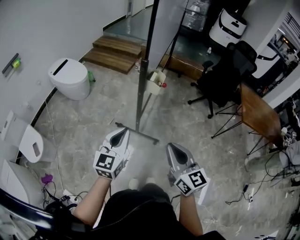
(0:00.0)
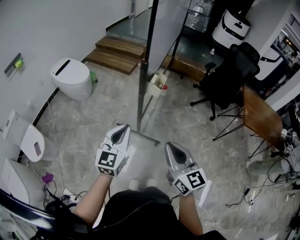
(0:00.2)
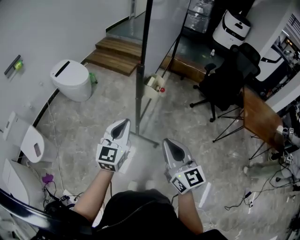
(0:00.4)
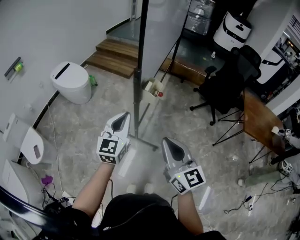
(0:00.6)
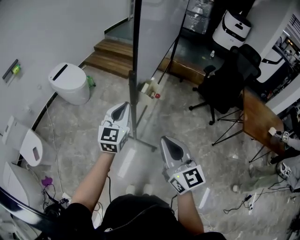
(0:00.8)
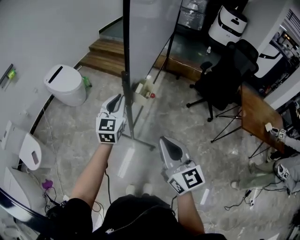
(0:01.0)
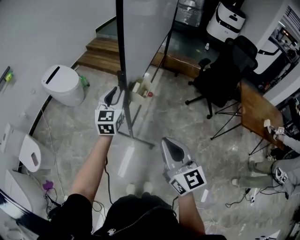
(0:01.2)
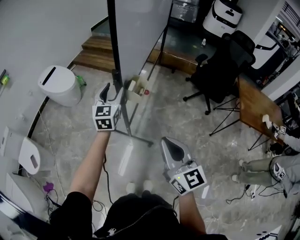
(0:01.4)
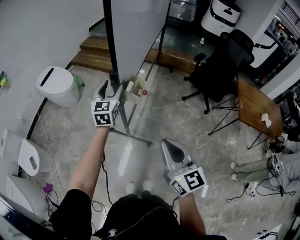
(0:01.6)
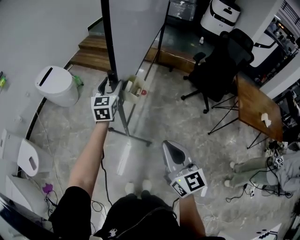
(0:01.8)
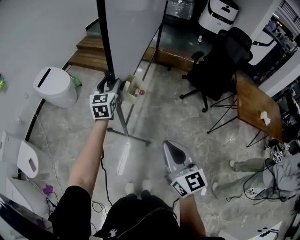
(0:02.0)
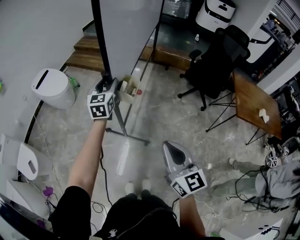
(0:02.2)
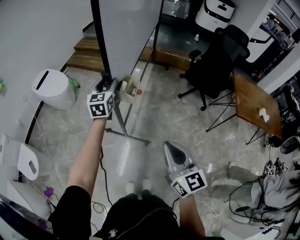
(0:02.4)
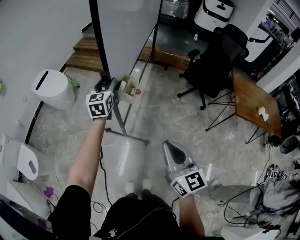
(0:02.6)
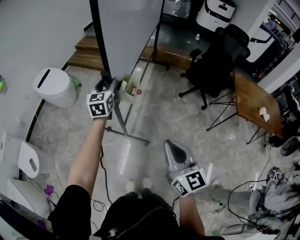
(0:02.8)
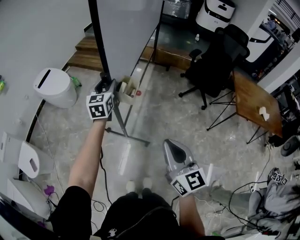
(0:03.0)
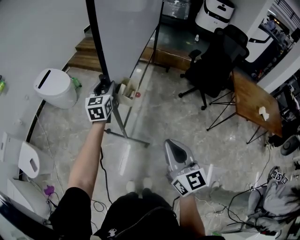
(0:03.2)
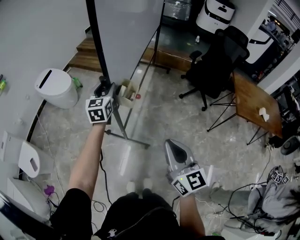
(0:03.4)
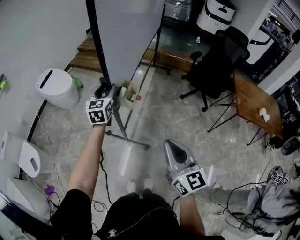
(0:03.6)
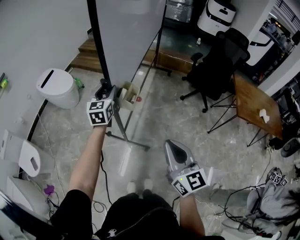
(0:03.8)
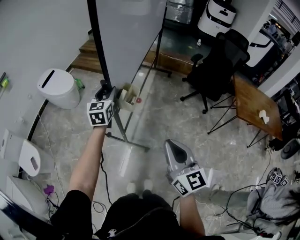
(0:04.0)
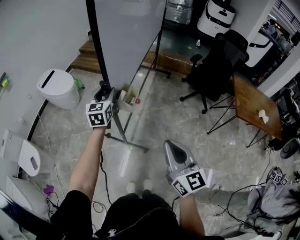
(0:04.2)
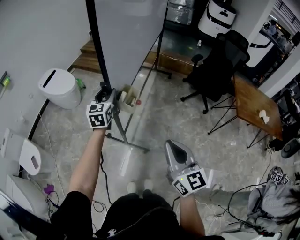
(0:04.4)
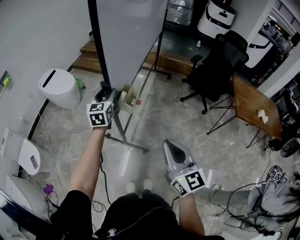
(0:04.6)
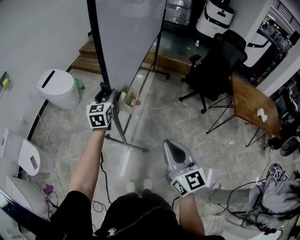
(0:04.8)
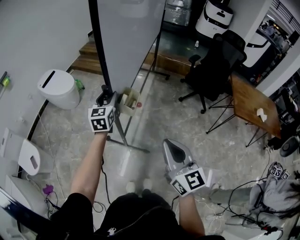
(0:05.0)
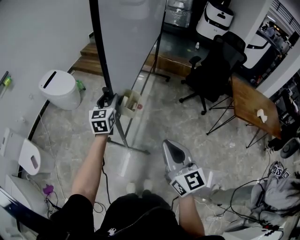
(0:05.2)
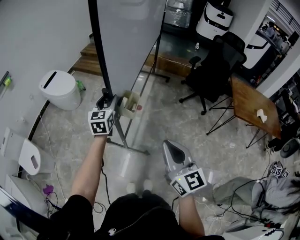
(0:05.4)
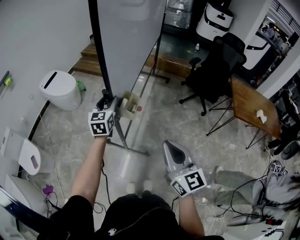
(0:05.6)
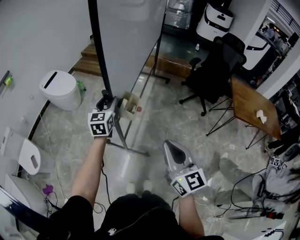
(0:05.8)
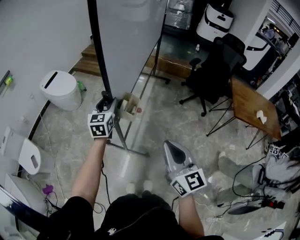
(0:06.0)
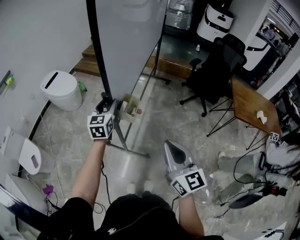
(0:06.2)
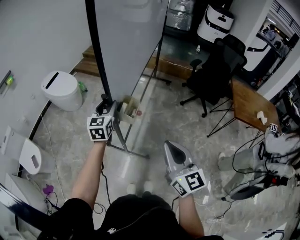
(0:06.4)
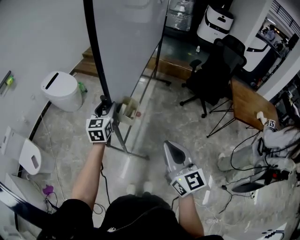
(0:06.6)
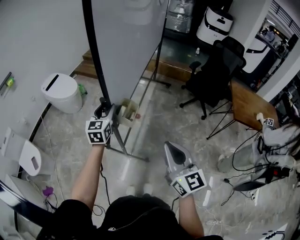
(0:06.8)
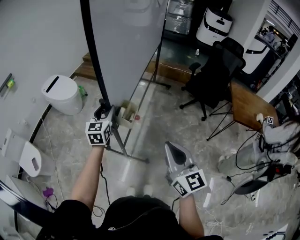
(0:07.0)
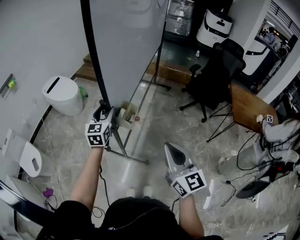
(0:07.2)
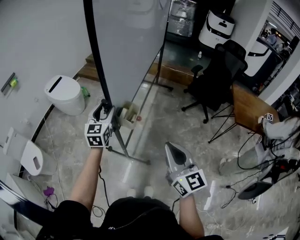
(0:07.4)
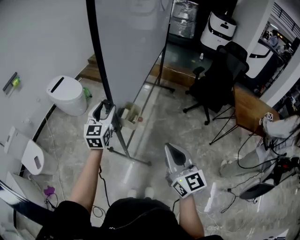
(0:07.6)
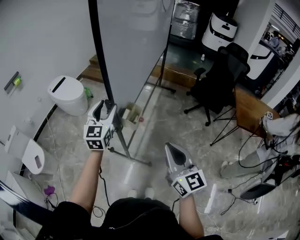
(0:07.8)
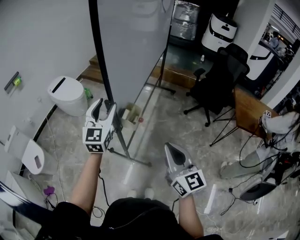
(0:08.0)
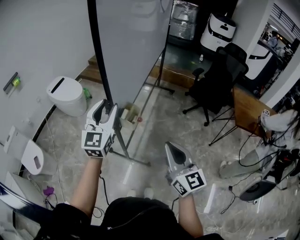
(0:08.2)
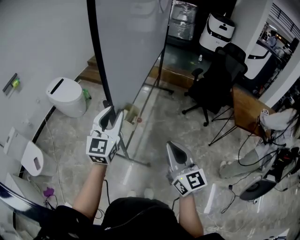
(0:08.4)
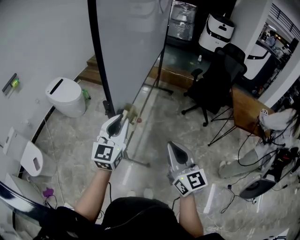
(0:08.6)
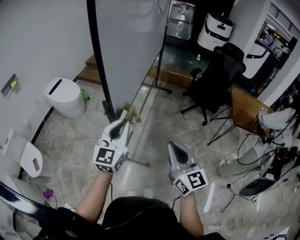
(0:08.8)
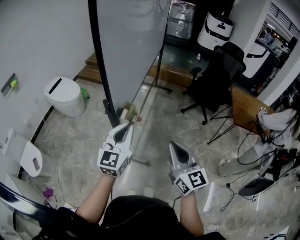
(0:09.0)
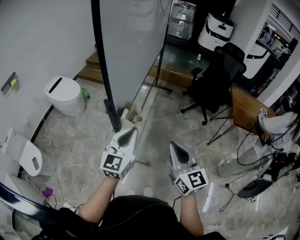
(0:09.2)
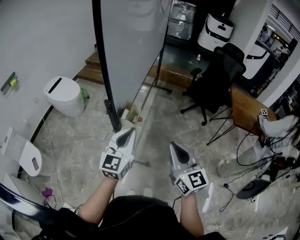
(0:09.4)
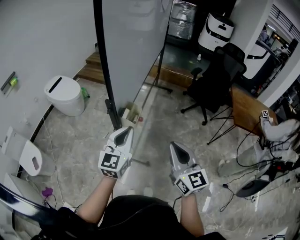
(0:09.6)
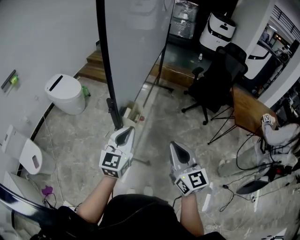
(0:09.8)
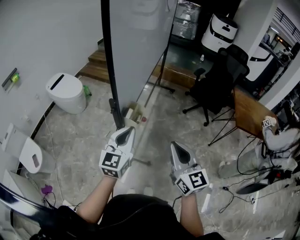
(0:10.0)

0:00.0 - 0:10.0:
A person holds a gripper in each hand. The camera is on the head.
0:00.0 - 0:01.4: The right gripper moves forward and to the right, approximately 15 cm; the left gripper travels forward by about 30 cm, and opens up.
0:01.4 - 0:02.8: The grippers stay close to where they were, moving slightly.
0:02.8 - 0:04.2: The left gripper is displaced backward by approximately 5 cm.
0:04.2 - 0:05.8: The left gripper is displaced backward by some 5 cm.
0:05.8 - 0:07.2: The grippers stay close to where they were, moving slightly.
0:07.2 - 0:08.6: The left gripper is displaced backward, upward and to the right by some 15 cm, and closes.
0:08.6 - 0:10.0: The left gripper changes place by about 5 cm.

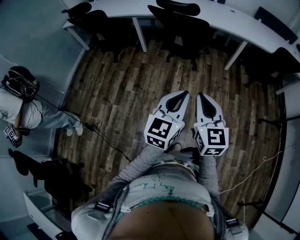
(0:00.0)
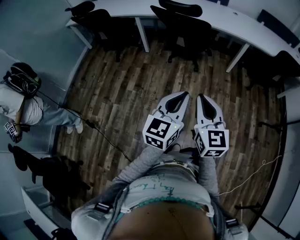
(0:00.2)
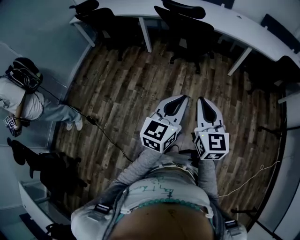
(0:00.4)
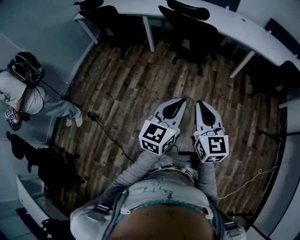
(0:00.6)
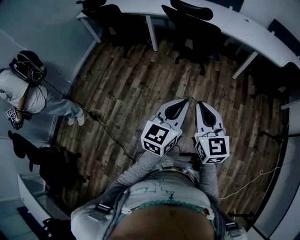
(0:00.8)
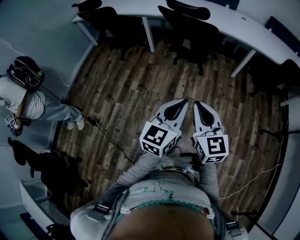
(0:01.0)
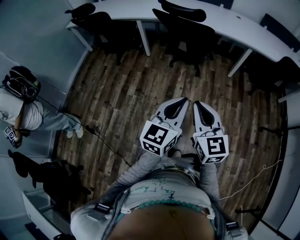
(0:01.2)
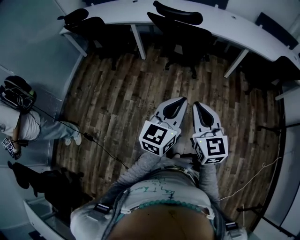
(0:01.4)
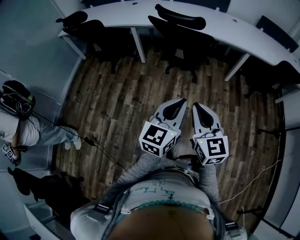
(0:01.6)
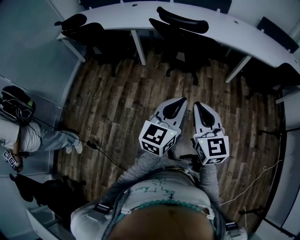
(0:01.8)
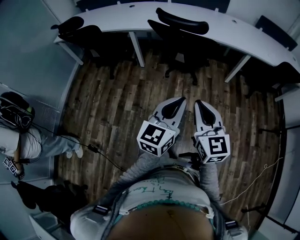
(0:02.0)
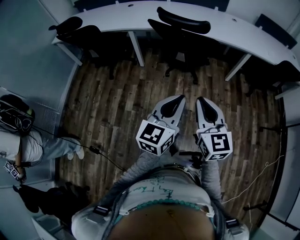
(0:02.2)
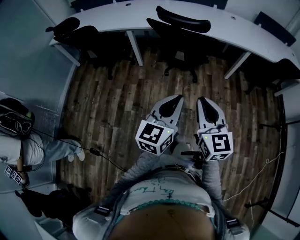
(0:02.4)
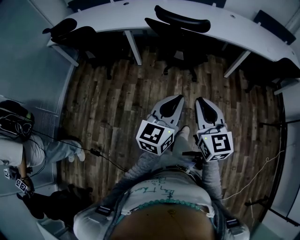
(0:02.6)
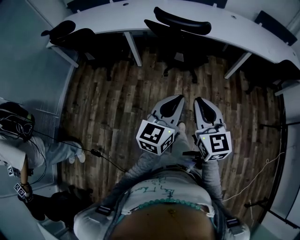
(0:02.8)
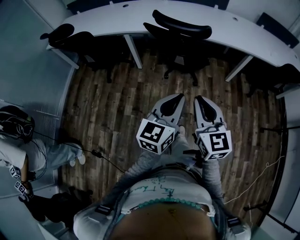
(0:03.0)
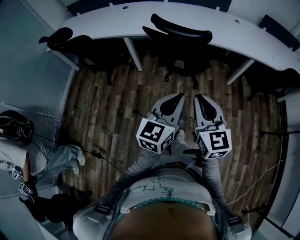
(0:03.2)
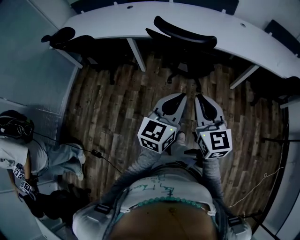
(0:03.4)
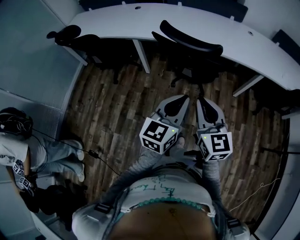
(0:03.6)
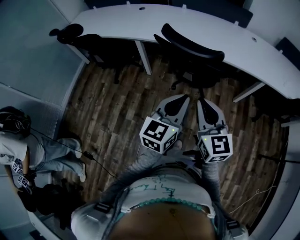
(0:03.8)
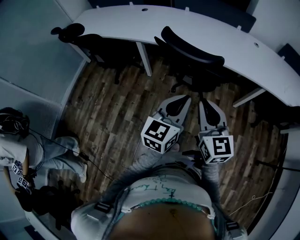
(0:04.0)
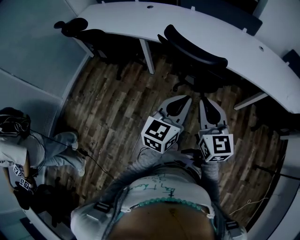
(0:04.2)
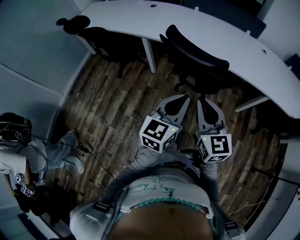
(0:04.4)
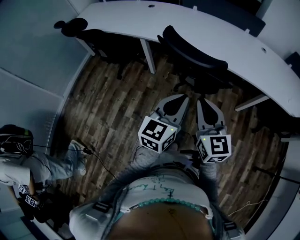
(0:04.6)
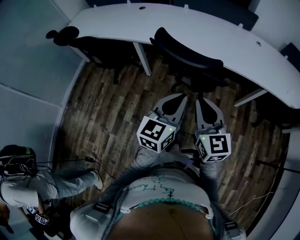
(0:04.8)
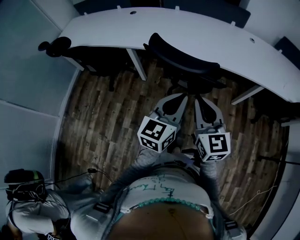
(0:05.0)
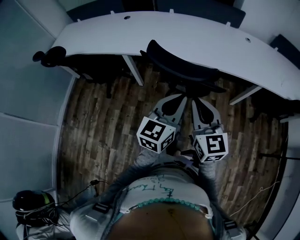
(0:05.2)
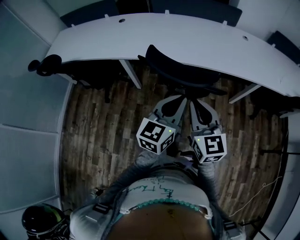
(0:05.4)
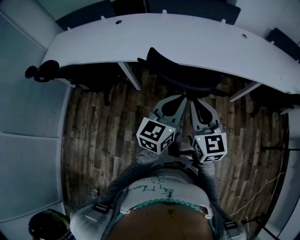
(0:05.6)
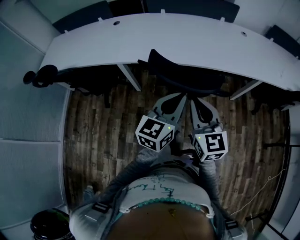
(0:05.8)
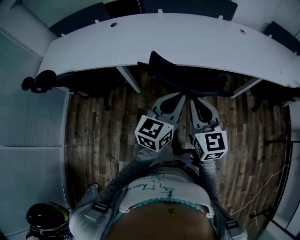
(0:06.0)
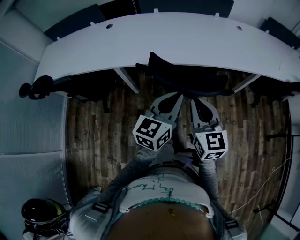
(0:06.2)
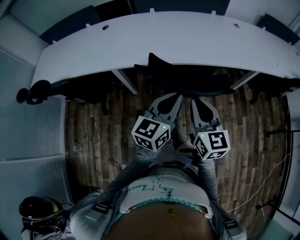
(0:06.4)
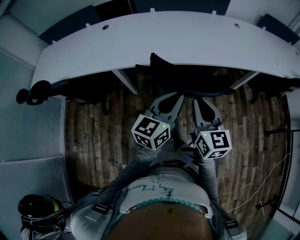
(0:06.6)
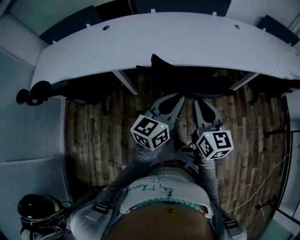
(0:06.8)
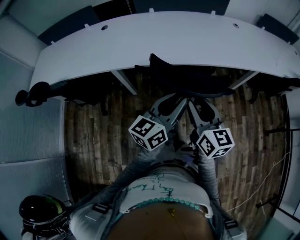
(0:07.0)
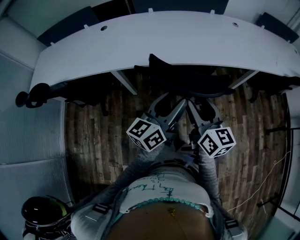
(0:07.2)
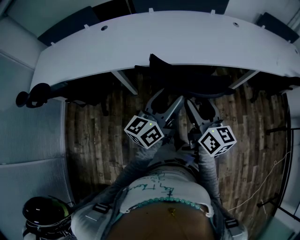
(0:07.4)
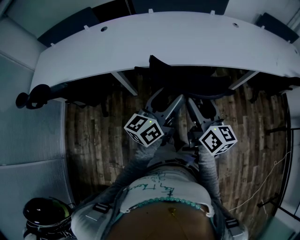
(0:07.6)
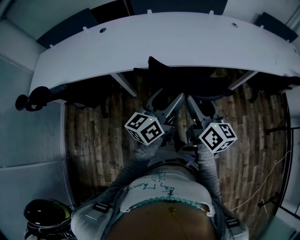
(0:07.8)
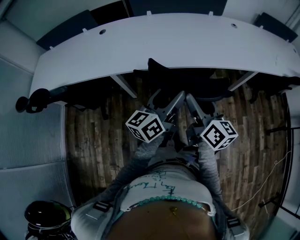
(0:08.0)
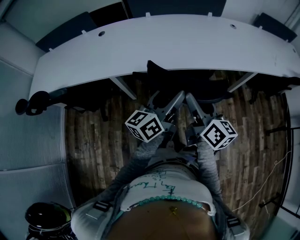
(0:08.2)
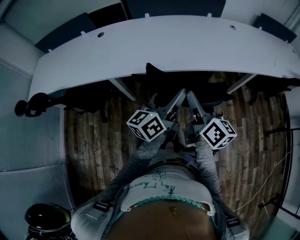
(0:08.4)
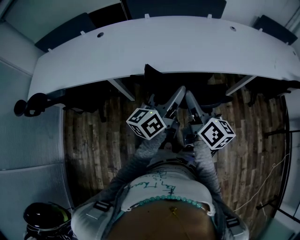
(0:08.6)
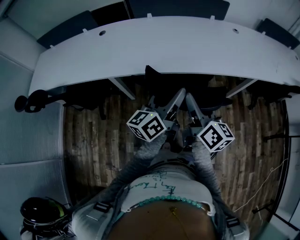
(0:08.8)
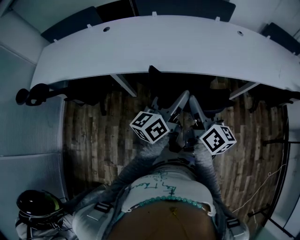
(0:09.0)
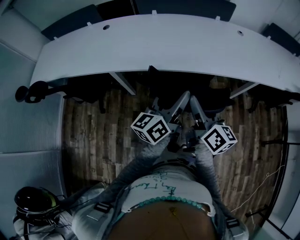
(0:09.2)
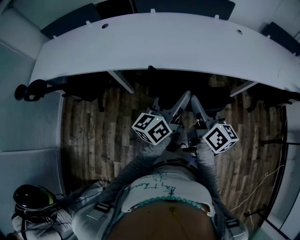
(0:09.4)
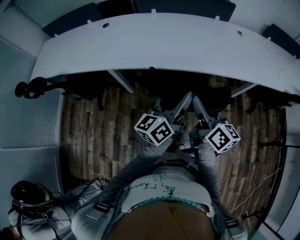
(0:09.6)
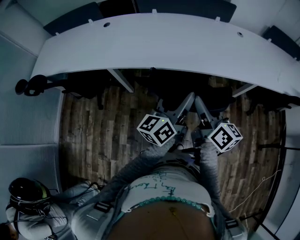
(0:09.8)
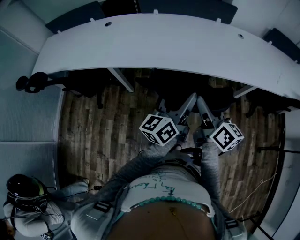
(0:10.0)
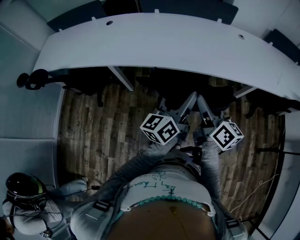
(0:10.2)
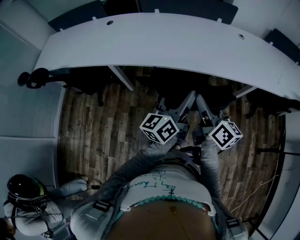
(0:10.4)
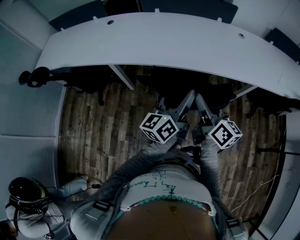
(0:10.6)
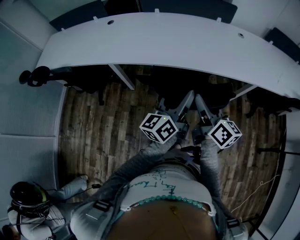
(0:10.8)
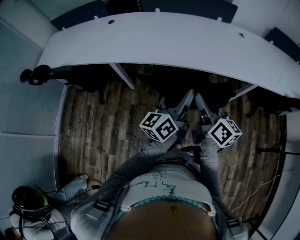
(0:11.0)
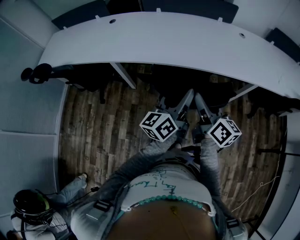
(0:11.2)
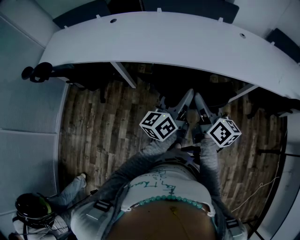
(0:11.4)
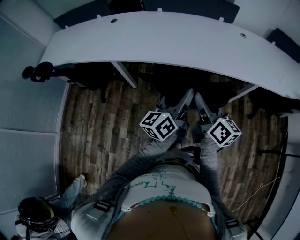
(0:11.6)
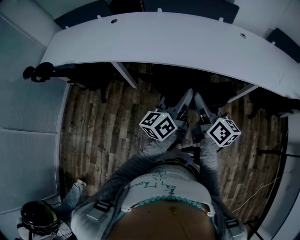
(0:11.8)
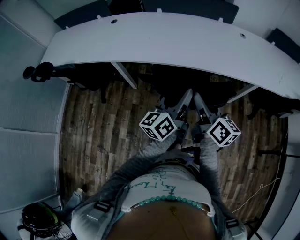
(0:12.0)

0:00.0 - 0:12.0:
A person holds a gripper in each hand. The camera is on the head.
0:00.0 - 0:01.6: The left gripper moves forward, roughly 10 cm, while the right gripper goes roughly 10 cm forward and to the left.
0:01.6 - 0:03.0: The grippers both shift forward and to the left by approximately 15 cm.
0:03.0 - 0:04.4: The two grippers go roughly 20 cm forward.
0:04.4 - 0:06.0: The left gripper moves forward, roughly 15 cm. The right gripper heads forward and to the left, covering roughly 15 cm.
0:06.0 - 0:07.6: The right gripper swivels some 30 degrees, and opens up. The left gripper is displaced to the left by roughly 5 cm, rotates roughly 20 degrees, and opens up.
0:07.6 - 0:09.0: The grippers both shift forward by about 5 cm.
0:09.0 - 0:10.4: The two grippers go approximately 10 cm to the right.
0:10.4 - 0:12.0: There are only small adjustments of the grippers.

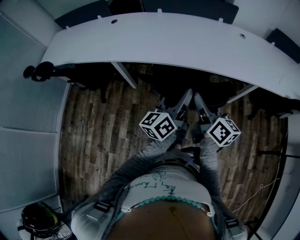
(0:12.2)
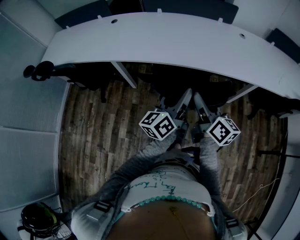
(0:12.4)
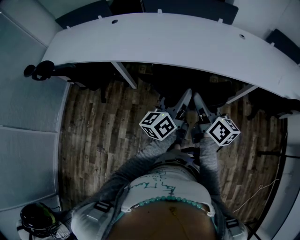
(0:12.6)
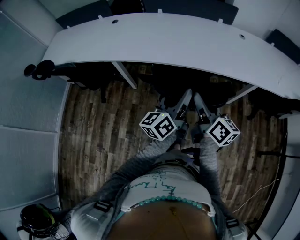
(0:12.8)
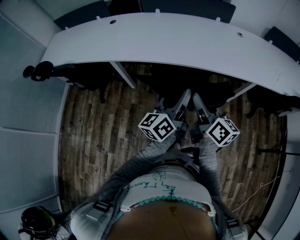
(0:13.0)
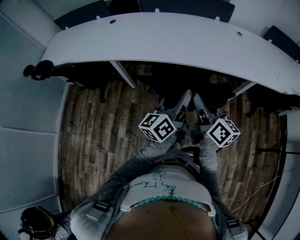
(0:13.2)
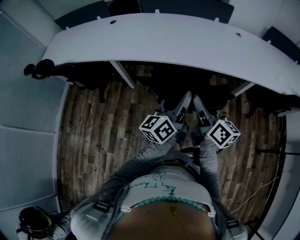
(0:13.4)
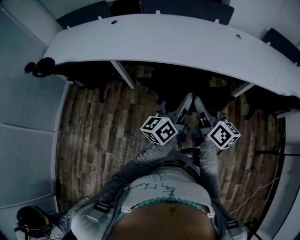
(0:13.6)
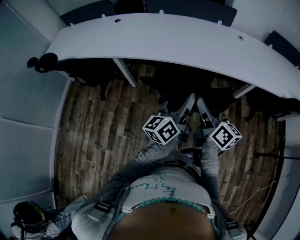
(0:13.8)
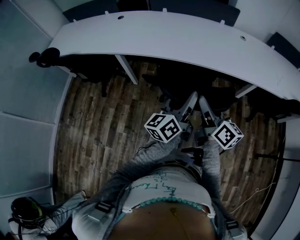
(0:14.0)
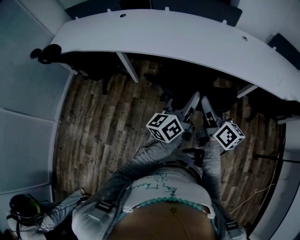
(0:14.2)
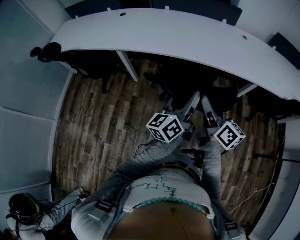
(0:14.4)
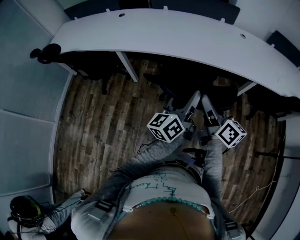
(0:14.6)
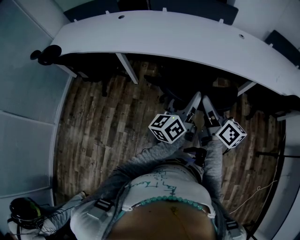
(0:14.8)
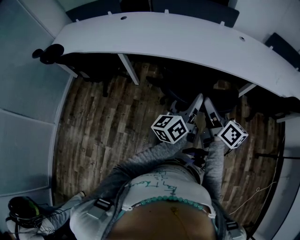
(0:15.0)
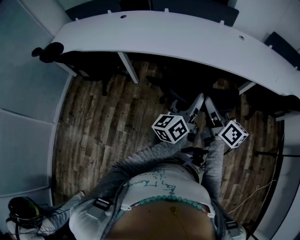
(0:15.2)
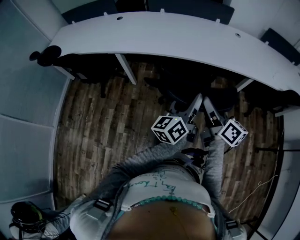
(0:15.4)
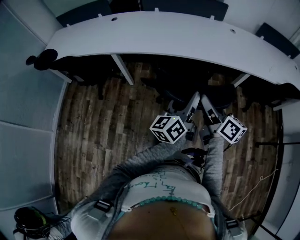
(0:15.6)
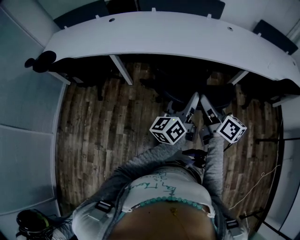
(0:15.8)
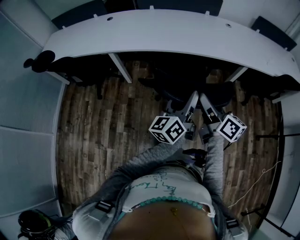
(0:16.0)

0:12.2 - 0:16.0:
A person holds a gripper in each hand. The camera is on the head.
0:12.2 - 0:13.4: The grippers make only small movements.
0:13.4 - 0:14.8: The two grippers go some 5 cm backward.
0:14.8 - 0:16.0: The grippers both shift backward by about 5 cm.
